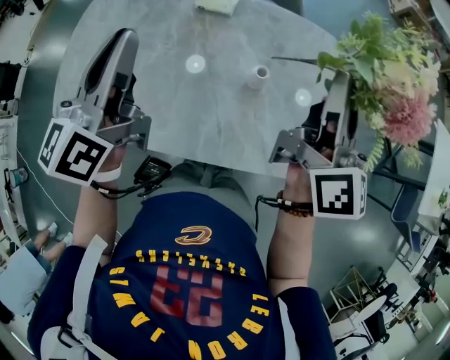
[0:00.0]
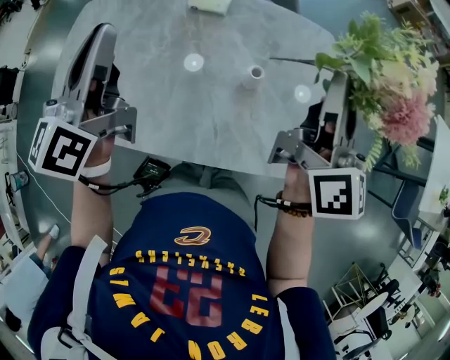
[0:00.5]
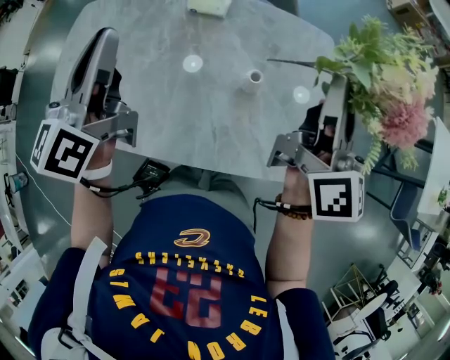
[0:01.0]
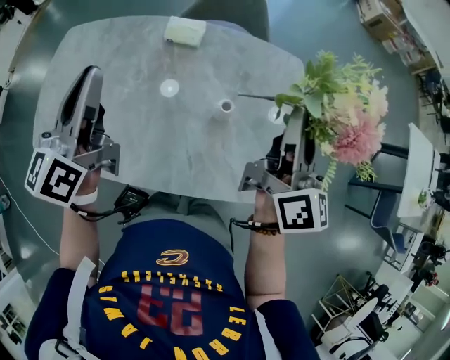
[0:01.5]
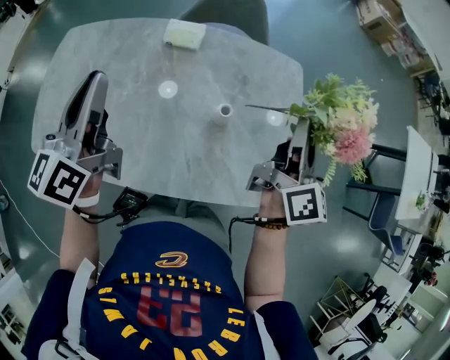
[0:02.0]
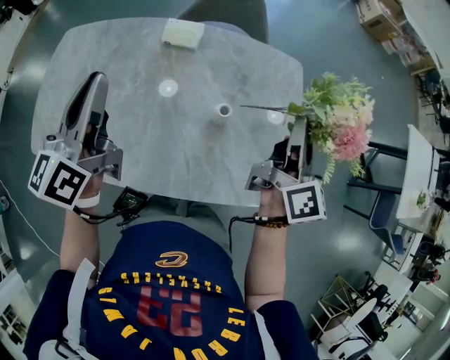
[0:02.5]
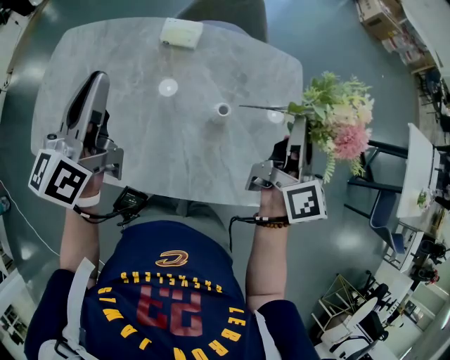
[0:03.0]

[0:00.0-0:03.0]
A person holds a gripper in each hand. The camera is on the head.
0:00.0 to 0:01.5: The grippers move only a little.
0:01.5 to 0:03.0: The right gripper changes place by some 5 cm.

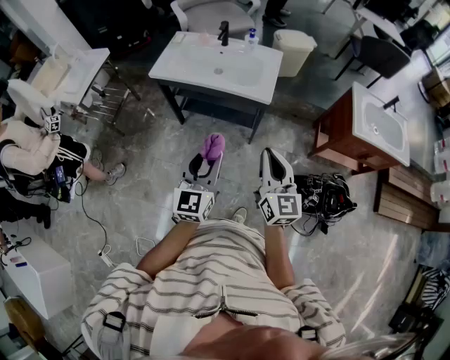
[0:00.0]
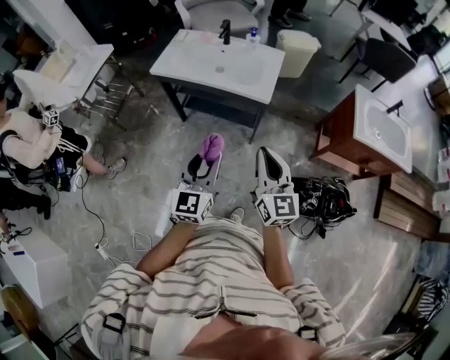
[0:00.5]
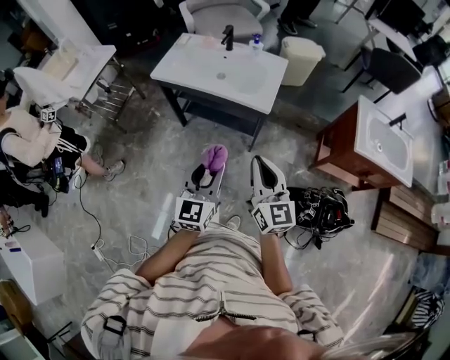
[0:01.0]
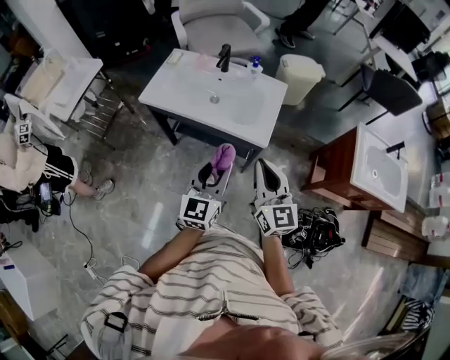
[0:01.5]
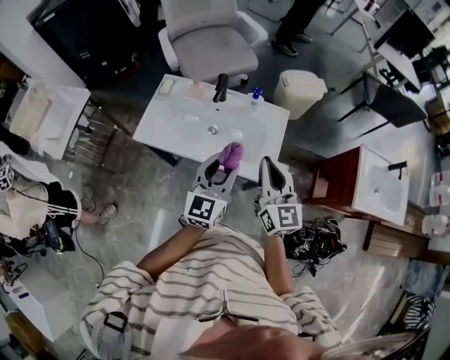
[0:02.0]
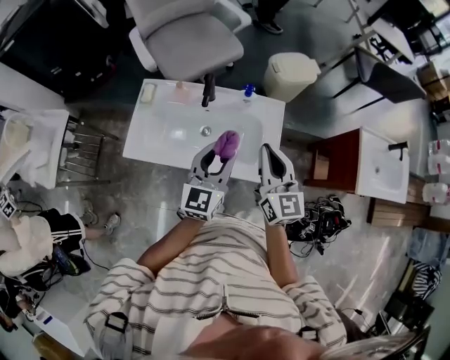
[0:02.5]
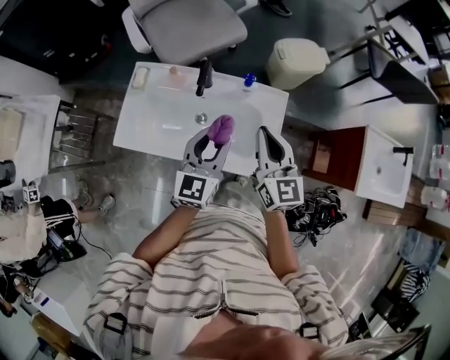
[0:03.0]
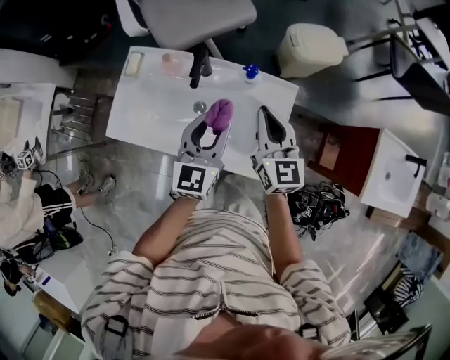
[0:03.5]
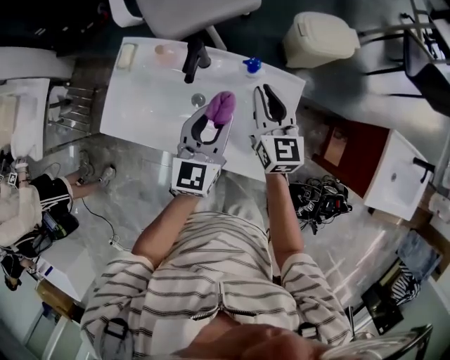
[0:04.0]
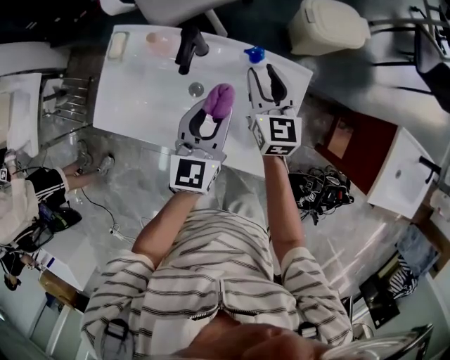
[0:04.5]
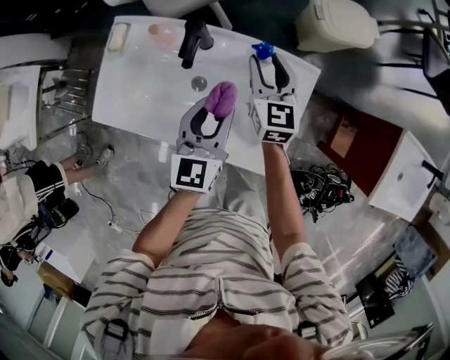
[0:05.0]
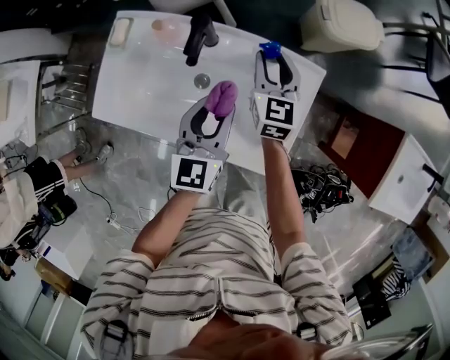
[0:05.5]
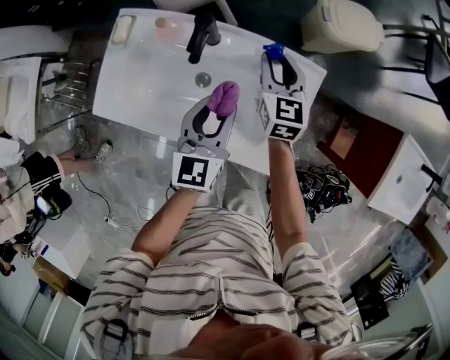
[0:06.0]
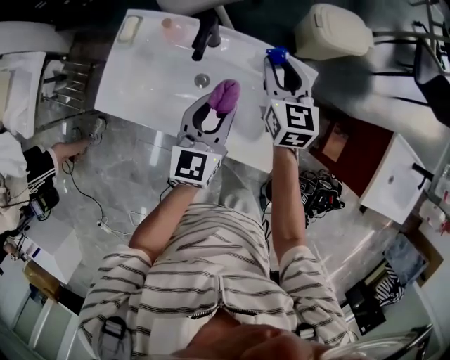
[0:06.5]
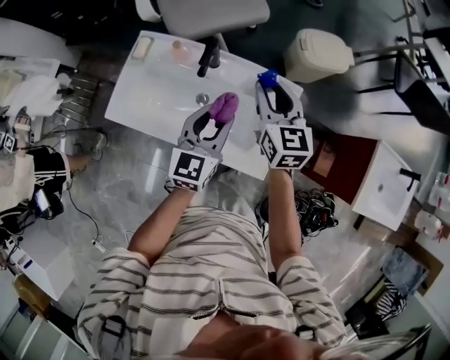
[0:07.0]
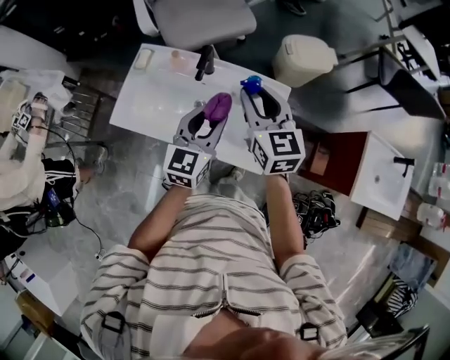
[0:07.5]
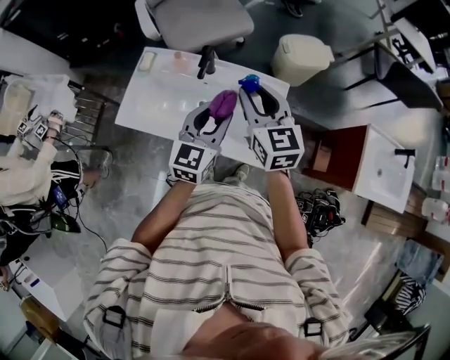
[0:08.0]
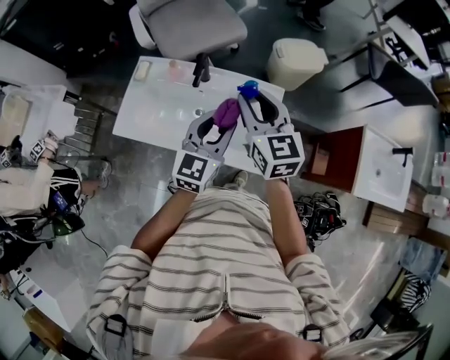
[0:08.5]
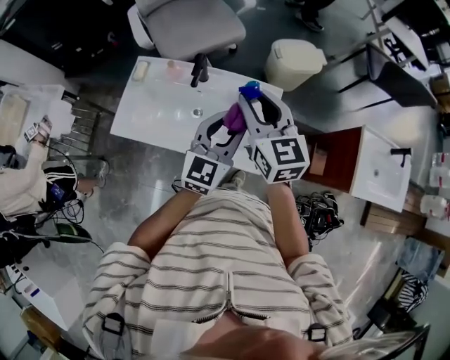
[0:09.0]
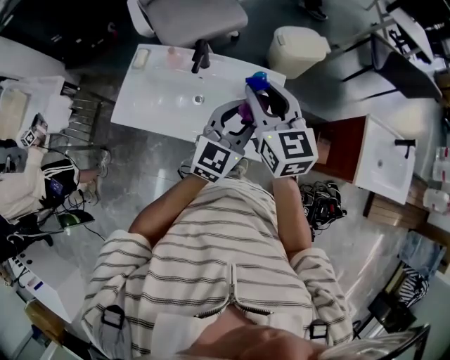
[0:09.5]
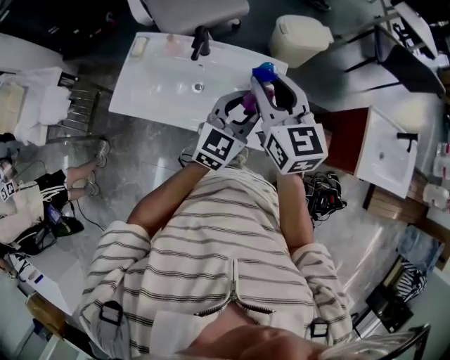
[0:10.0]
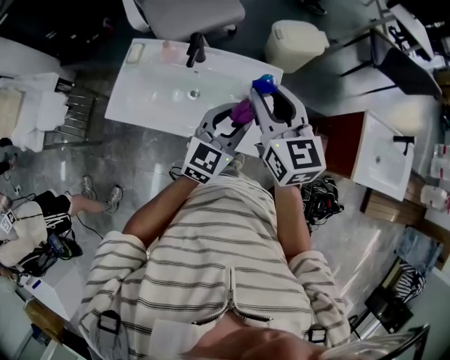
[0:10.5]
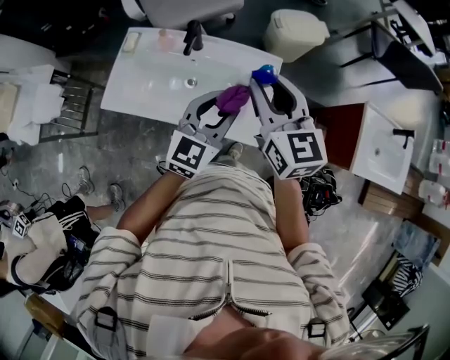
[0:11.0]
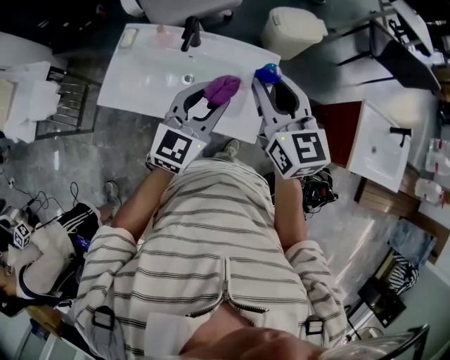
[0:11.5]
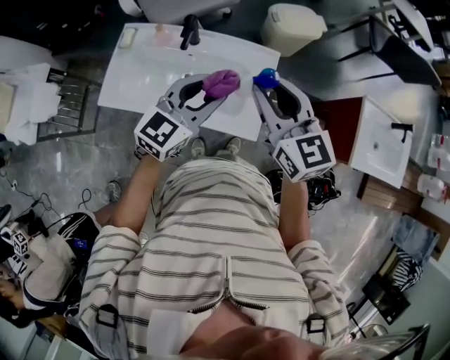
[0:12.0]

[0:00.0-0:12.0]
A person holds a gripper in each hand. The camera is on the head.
0:00.0 to 0:02.0: Both grippers move forward, about 40 cm.
0:02.0 to 0:04.0: The two grippers go approximately 30 cm forward and downward.
0:04.0 to 0:06.0: The right gripper goes some 10 cm downward and forward. Meanwhile the left gripper goes approximately 5 cm downward.
0:06.0 to 0:08.0: The left gripper heads upward and backward, covering about 15 cm; the right gripper heads upward and backward, covering about 30 cm.
0:08.0 to 0:10.0: The left gripper goes about 10 cm to the right. The right gripper shifts by about 5 cm.
0:10.0 to 0:12.0: The left gripper goes roughly 5 cm to the left.

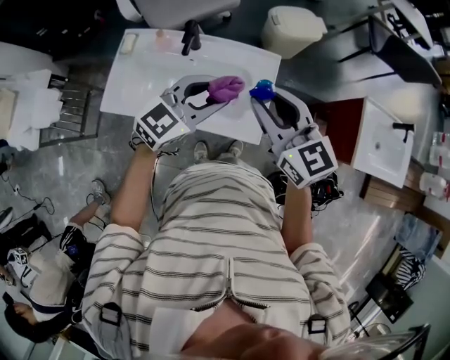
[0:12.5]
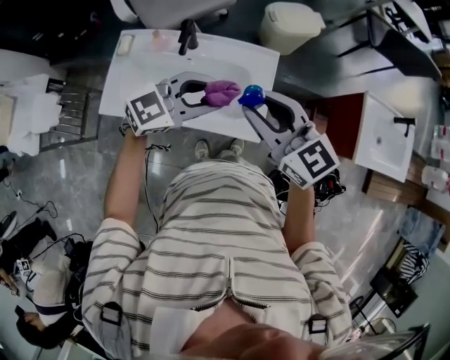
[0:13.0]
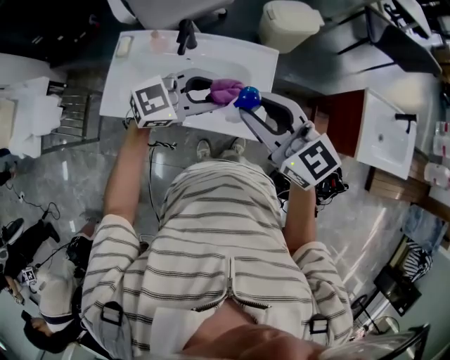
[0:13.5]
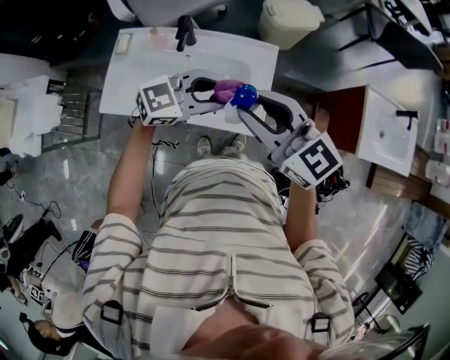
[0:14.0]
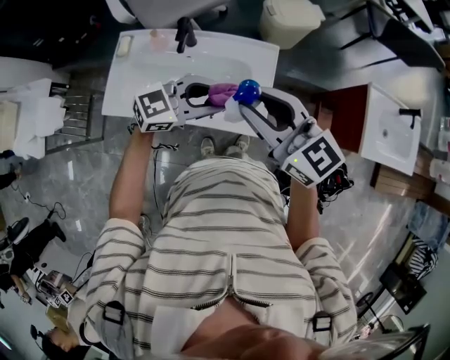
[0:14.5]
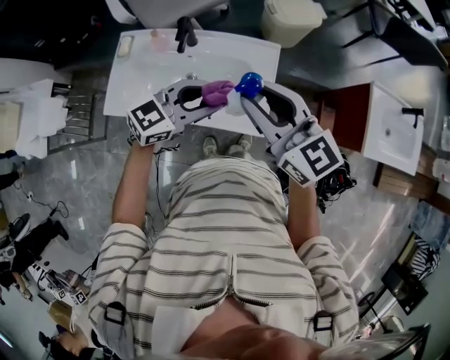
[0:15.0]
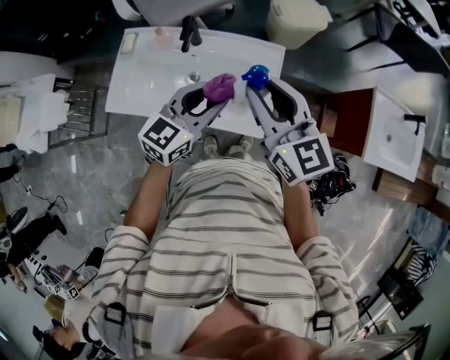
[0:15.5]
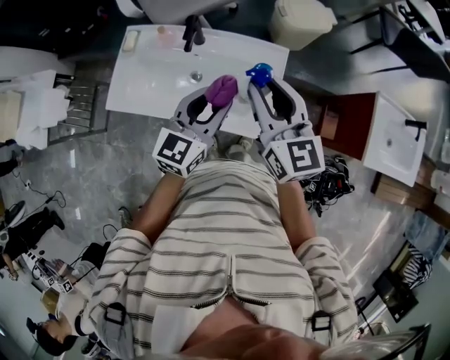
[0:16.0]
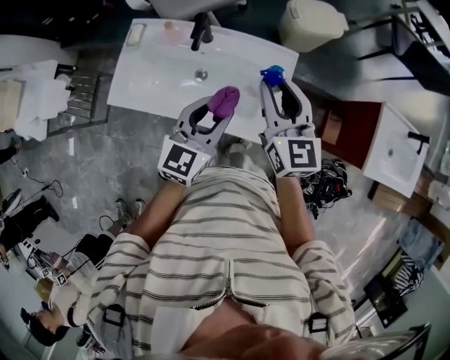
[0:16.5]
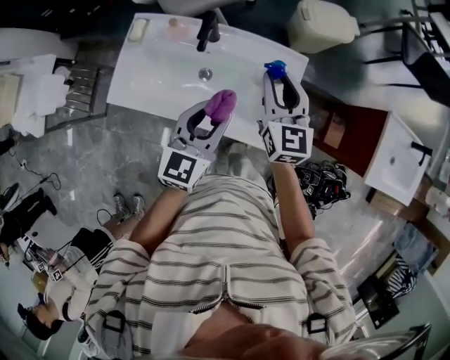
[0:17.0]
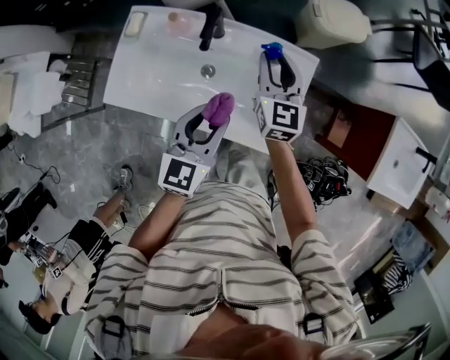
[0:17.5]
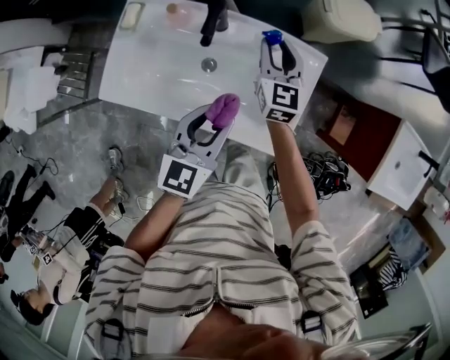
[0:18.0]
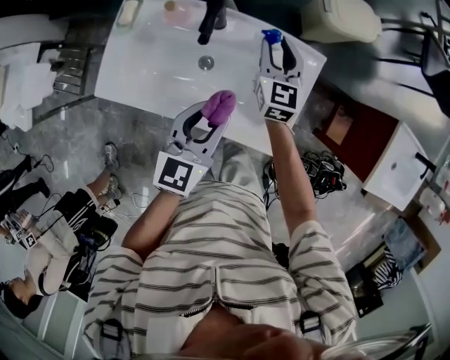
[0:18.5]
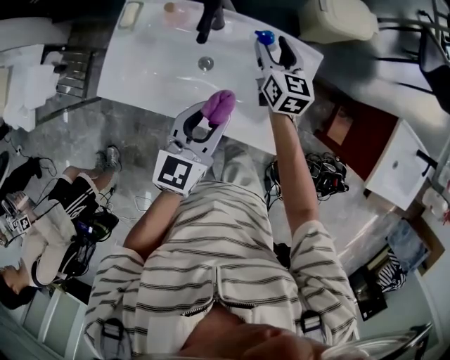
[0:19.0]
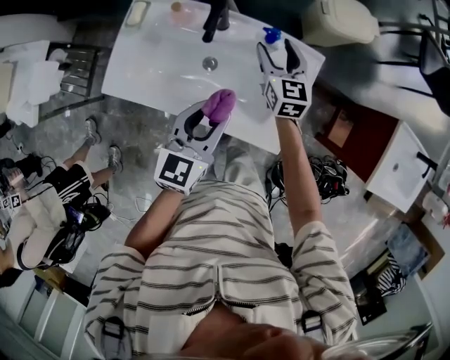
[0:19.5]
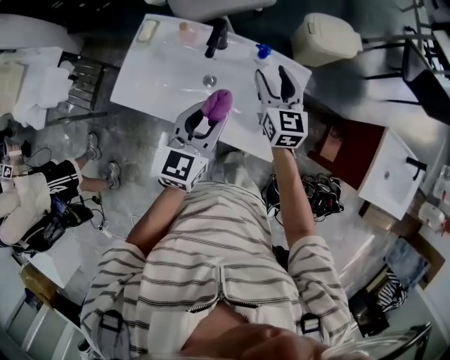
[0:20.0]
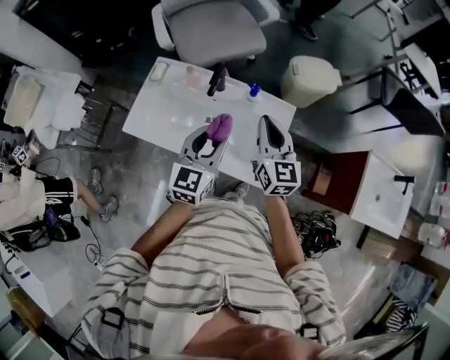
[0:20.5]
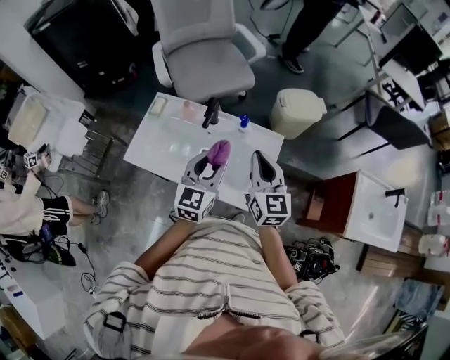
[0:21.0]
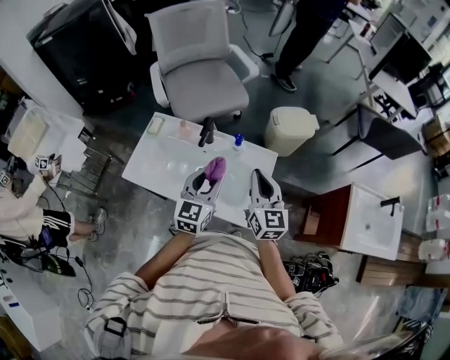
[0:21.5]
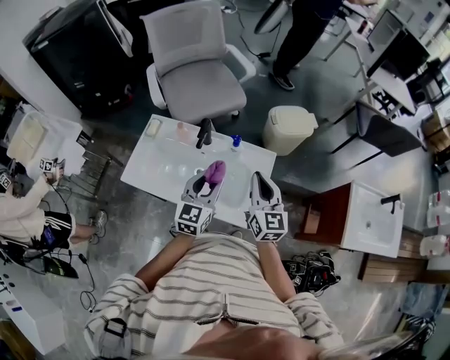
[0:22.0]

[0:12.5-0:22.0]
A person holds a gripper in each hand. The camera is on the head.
0:12.5 to 0:14.5: The left gripper changes its angle by about 20 degrees.
0:14.5 to 0:16.5: The right gripper moves approximately 10 cm, and swivels about 30 degrees, while the left gripper changes its angle by about 50 degrees.
0:16.5 to 0:18.0: The left gripper travels downward by about 10 cm; the right gripper is displaced downward and forward by some 25 cm.
0:18.0 to 0:20.0: The left gripper shifts by roughly 5 cm. The right gripper travels backward and upward by some 10 cm, and opens up.
0:20.0 to 0:22.0: The left gripper moves roughly 5 cm, while the right gripper goes about 15 cm backward, upward and to the right, and closes its fingers.

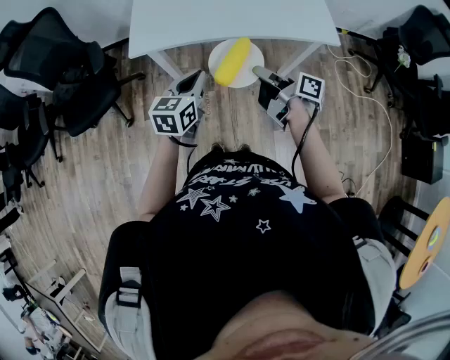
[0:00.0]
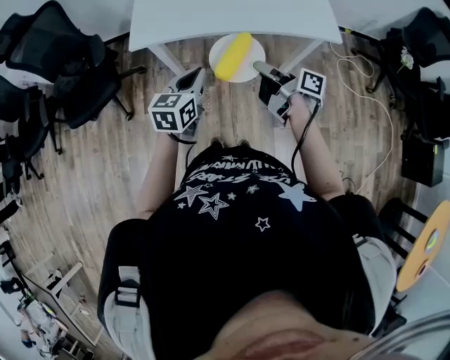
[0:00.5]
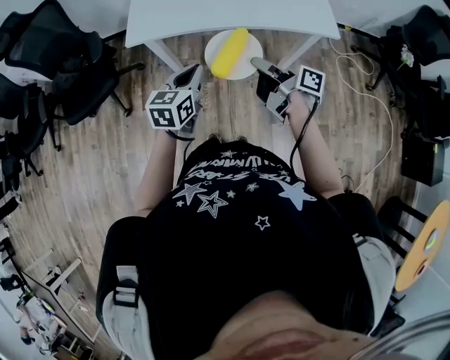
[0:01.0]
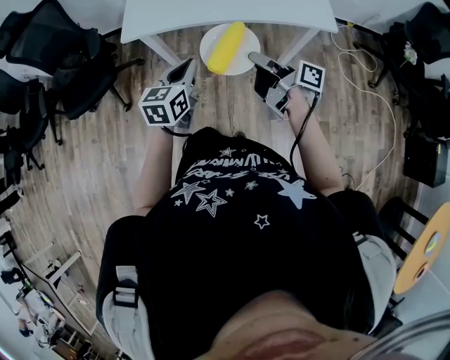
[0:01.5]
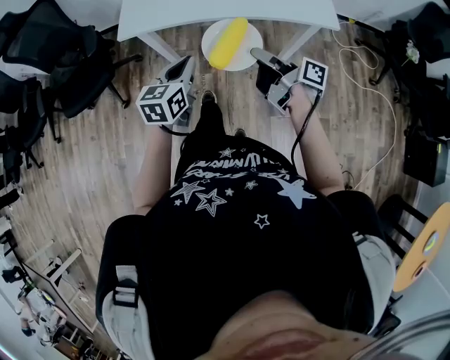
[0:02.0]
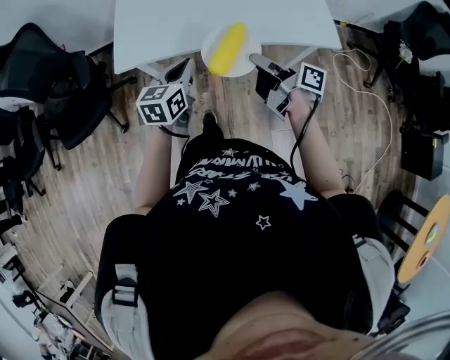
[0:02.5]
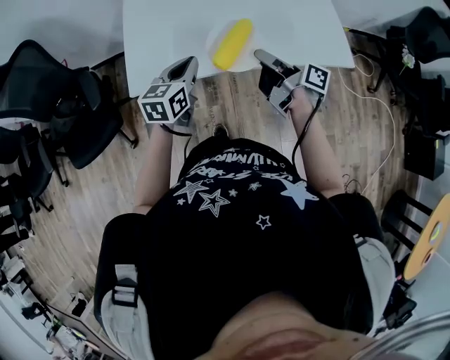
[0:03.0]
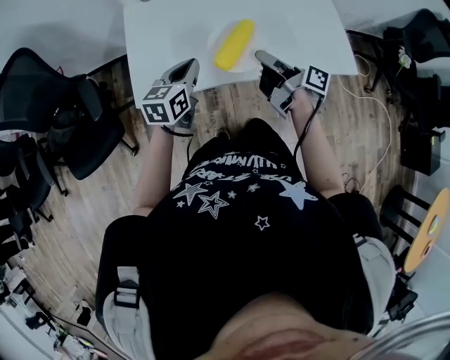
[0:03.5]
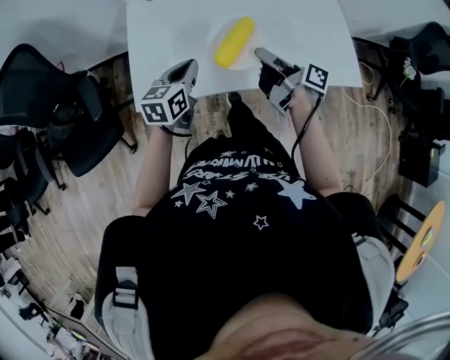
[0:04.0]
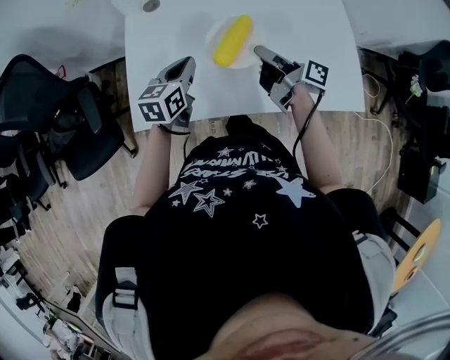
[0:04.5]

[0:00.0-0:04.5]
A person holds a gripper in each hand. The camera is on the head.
0:00.0 to 0:02.0: The grippers stay close to where they were, moving slightly.
0:02.0 to 0:04.5: The two grippers travel together, forward, roughly 40 cm.
